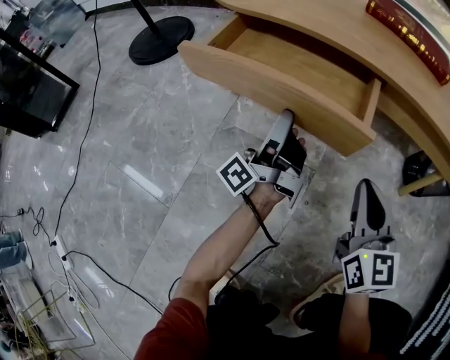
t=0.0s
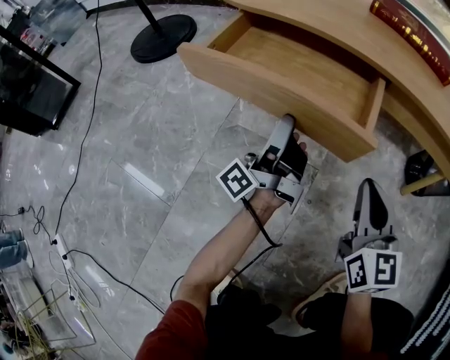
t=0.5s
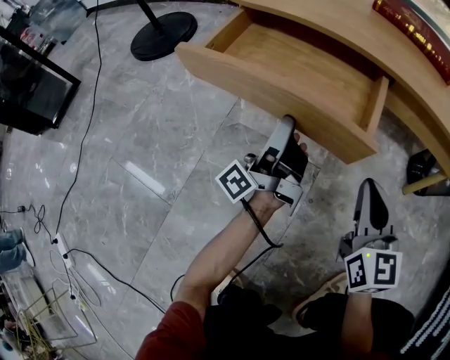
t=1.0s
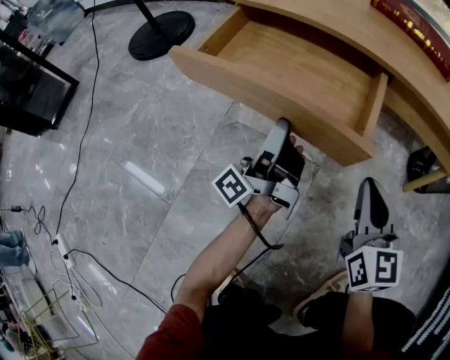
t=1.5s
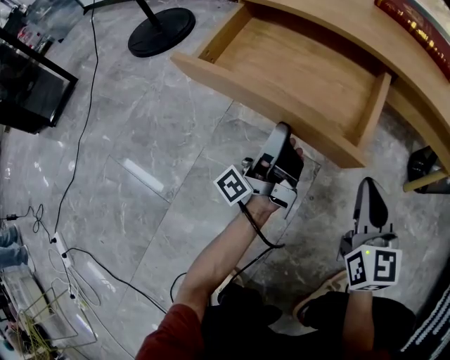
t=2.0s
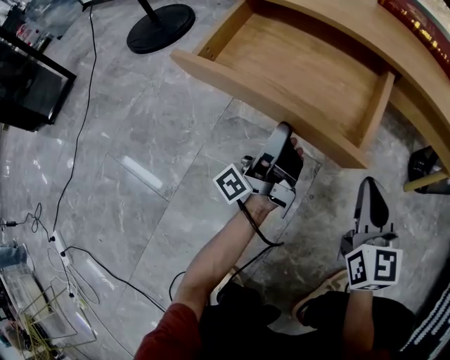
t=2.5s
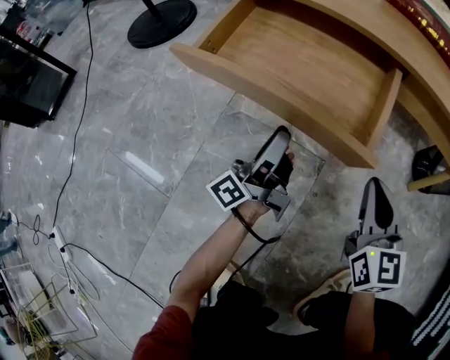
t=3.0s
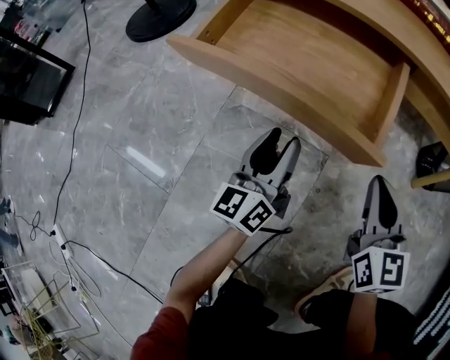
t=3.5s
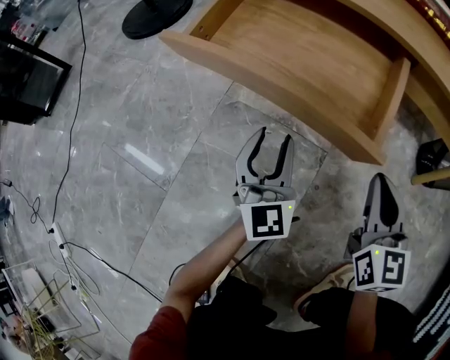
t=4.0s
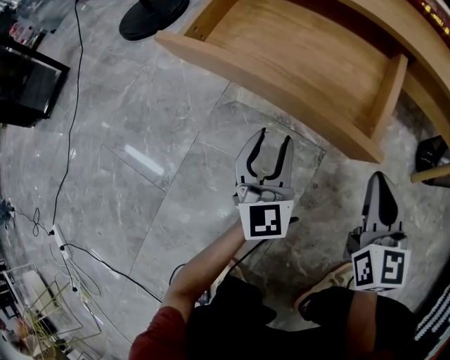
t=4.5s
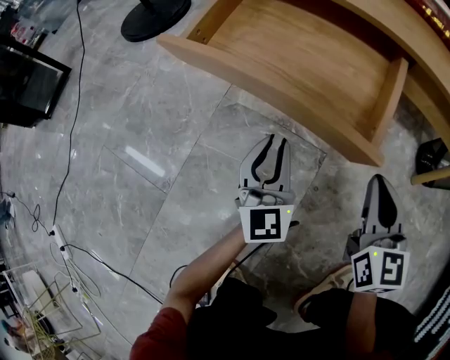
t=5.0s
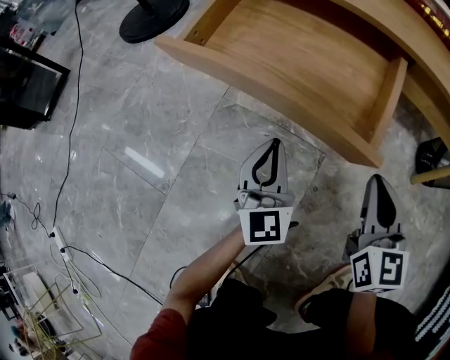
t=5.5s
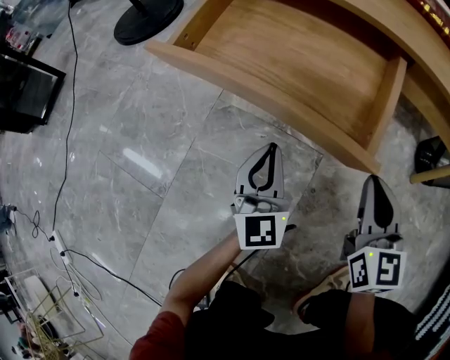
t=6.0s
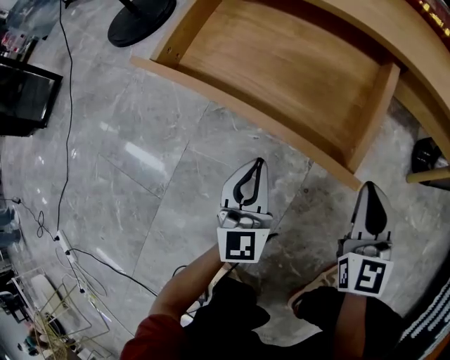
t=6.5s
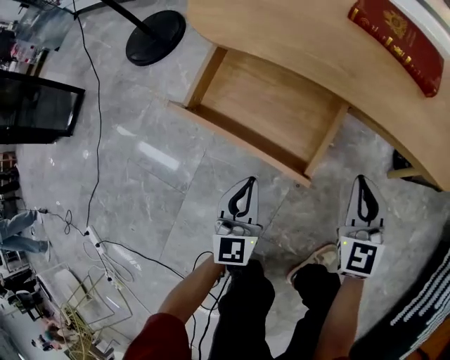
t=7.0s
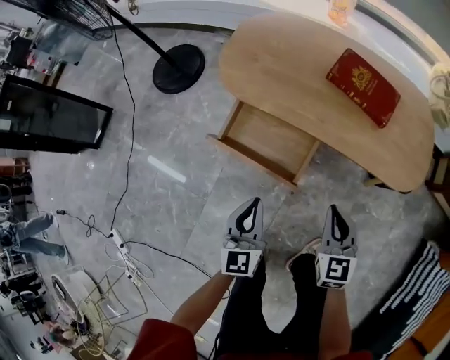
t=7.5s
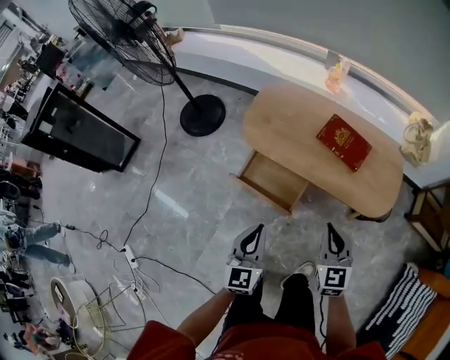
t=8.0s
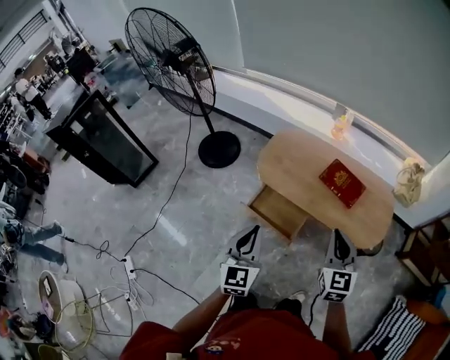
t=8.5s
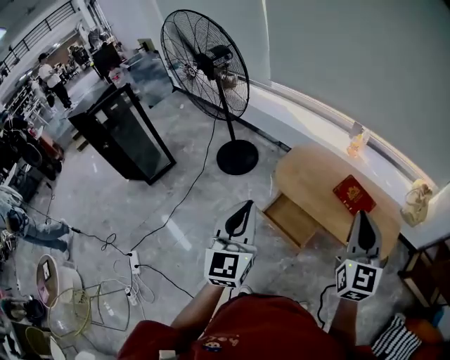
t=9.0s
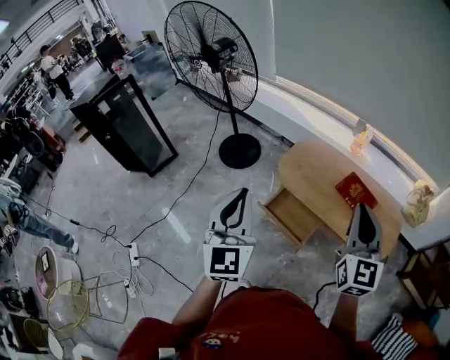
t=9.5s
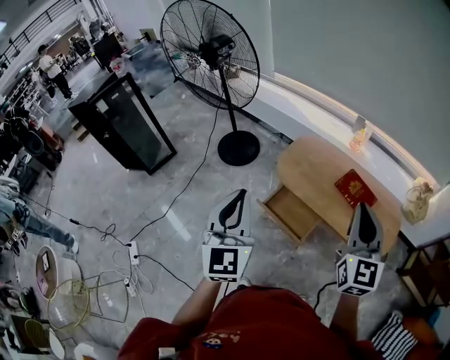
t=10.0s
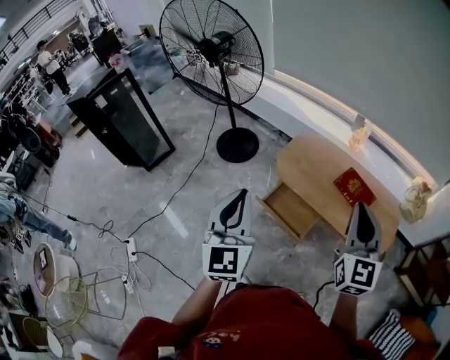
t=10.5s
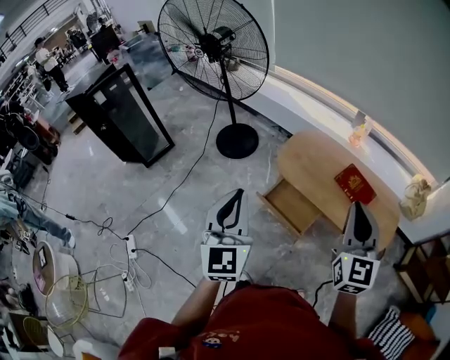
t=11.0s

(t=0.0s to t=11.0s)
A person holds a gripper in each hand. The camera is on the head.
t=0.0s - t=2.0s: The grippers make only small movements.
t=2.0s - t=3.5s: The left gripper changes place by roughly 5 cm, and rotates around the line of its fingers by approximately 60 degrees, clockwise from behind.
t=3.5s - t=5.5s: The left gripper rolls clockwise, seen from behind, by about 40 degrees, and closes up.
t=5.5s - t=7.5s: Both grippers travel together upward, about 35 cm.
t=7.5s - t=9.0s: The grippers both shift upward by roughly 50 cm. The left gripper changes its angle by about 20 degrees. The right gripper rotates roughly 30 degrees.
t=9.0s - t=11.0s: The left gripper ends up some 5 cm from where it was.

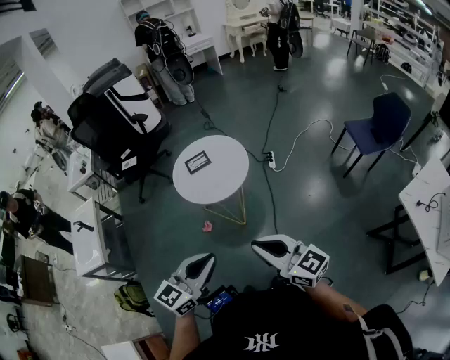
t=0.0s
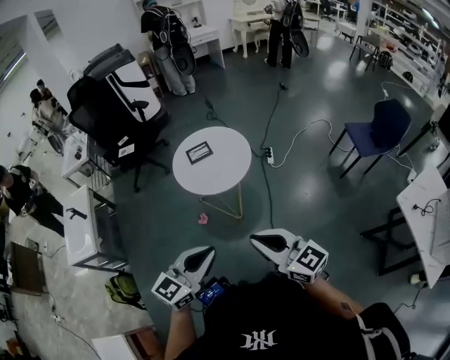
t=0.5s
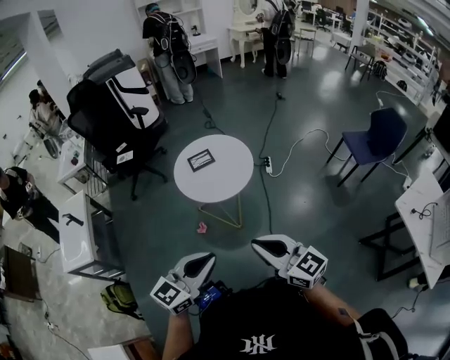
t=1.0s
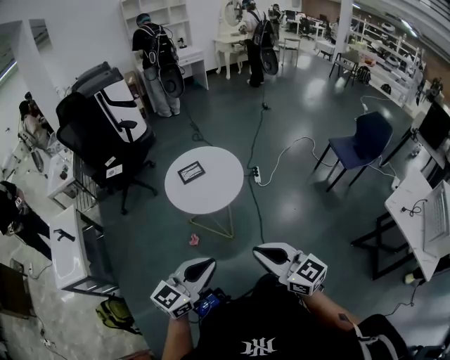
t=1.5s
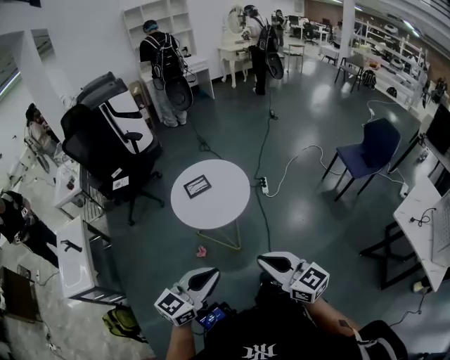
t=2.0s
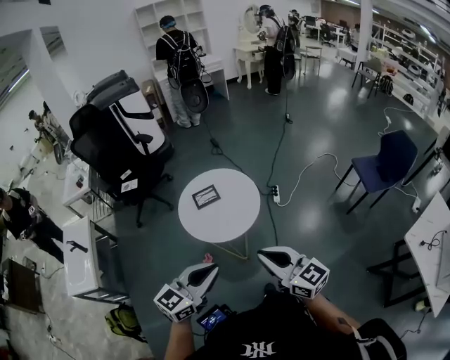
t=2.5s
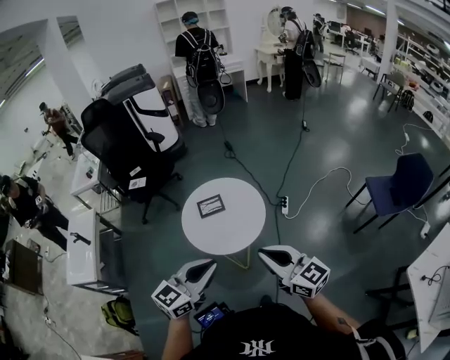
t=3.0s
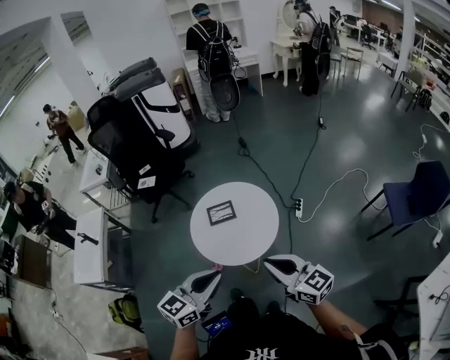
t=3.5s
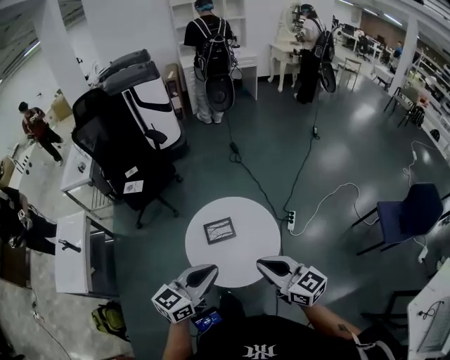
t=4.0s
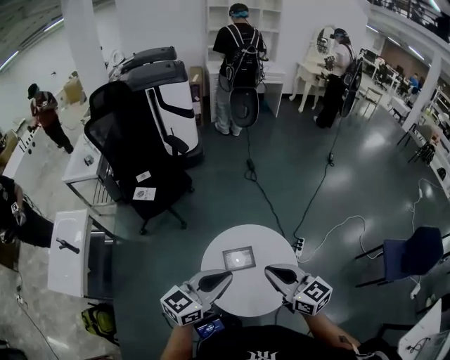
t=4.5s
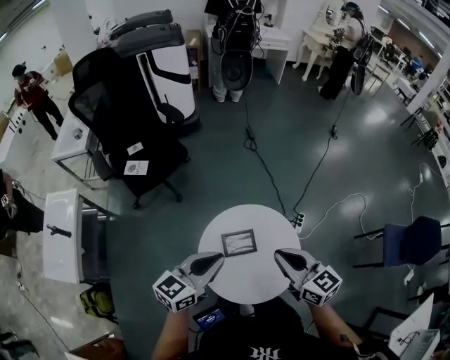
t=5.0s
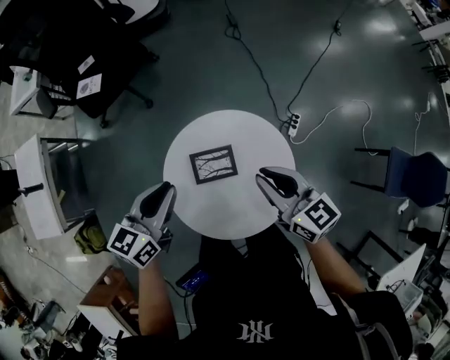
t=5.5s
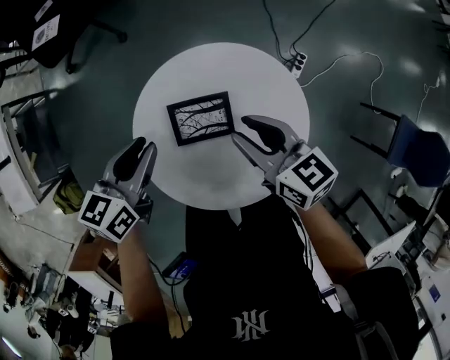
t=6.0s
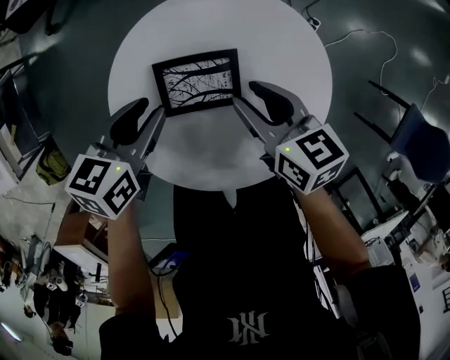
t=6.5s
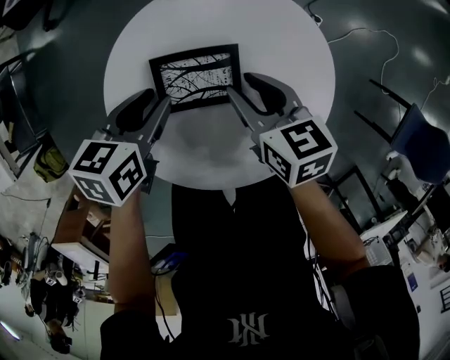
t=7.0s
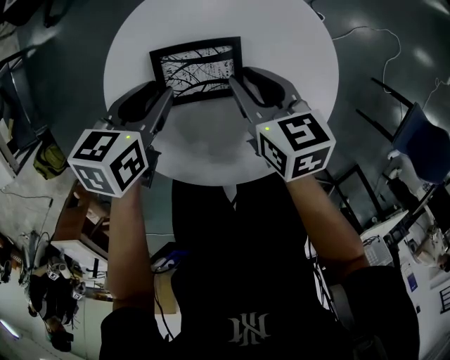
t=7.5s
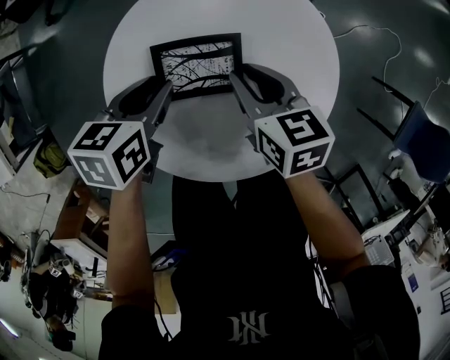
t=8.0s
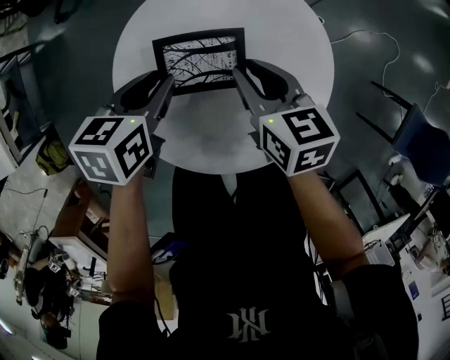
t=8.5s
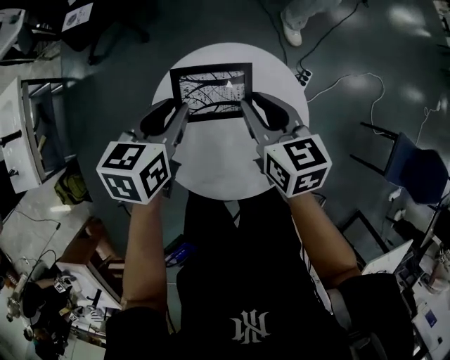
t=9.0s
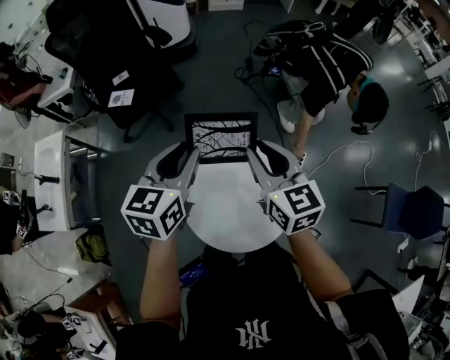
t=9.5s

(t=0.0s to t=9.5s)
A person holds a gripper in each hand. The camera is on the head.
t=0.0s - t=2.0s: The left gripper heads to the left and forward, covering approximately 10 cm, while the right gripper travels to the left by approximately 5 cm.
t=2.0s - t=4.0s: Both grippers move forward, roughly 40 cm.
t=4.0s - t=5.5s: The left gripper shifts roughly 35 cm forward, downward and to the left, and changes its angle by approximately 20 degrees; the right gripper is displaced forward and downward by some 30 cm.
t=5.5s - t=7.5s: The two grippers go some 30 cm downward. The left gripper swivels about 30 degrees, and opens. The right gripper swivels approximately 30 degrees.
t=7.5s - t=9.5s: Both grippers move upward, some 40 cm. The right gripper angles its fingers upward, by roughly 30 degrees, while the left gripper rotates approximately 40 degrees.

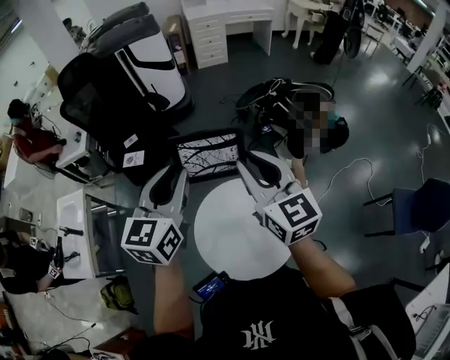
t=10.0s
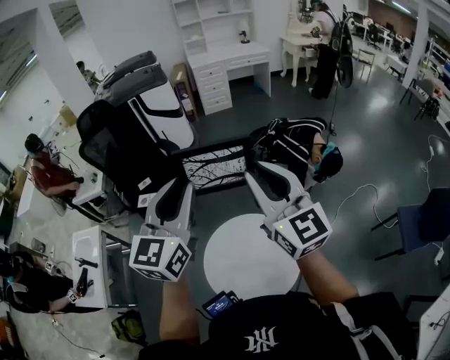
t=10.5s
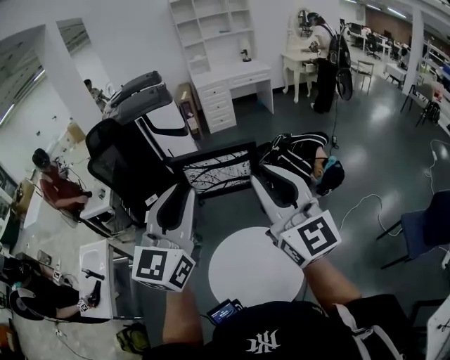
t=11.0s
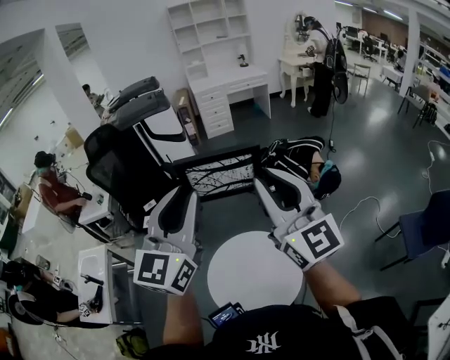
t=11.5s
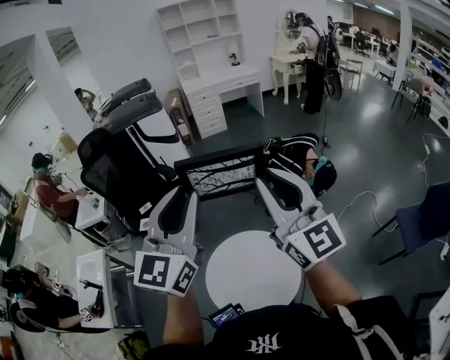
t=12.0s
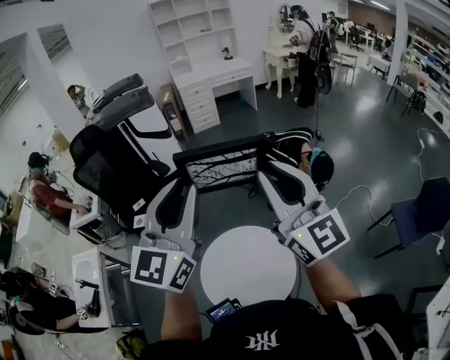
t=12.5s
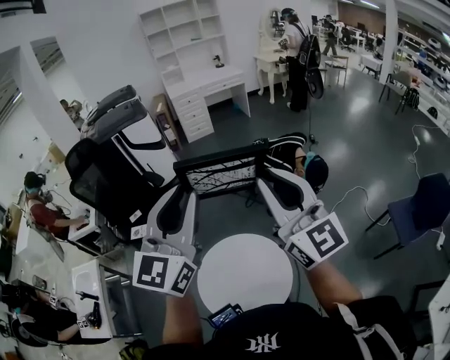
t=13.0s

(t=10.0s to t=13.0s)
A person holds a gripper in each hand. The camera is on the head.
t=10.0s - t=11.5s: Both grippers move upward, backward and to the right, some 20 cm. The left gripper rotates approximately 30 degrees, while the right gripper rotates some 20 degrees.
t=11.5s - t=13.0s: The two grippers go roughly 5 cm to the right.

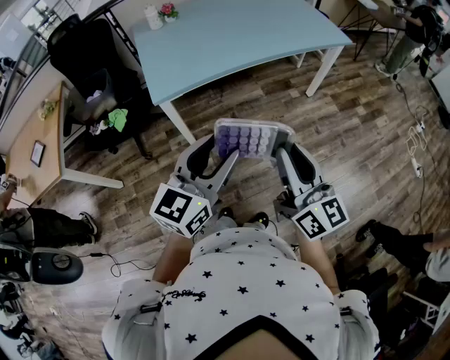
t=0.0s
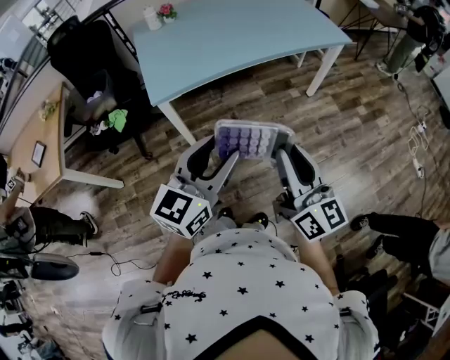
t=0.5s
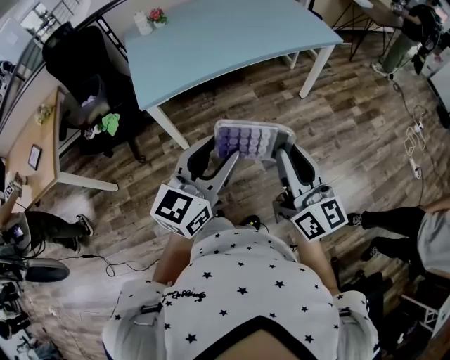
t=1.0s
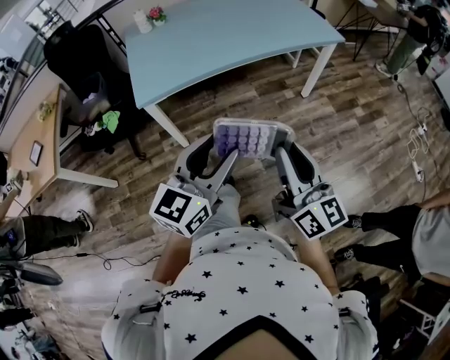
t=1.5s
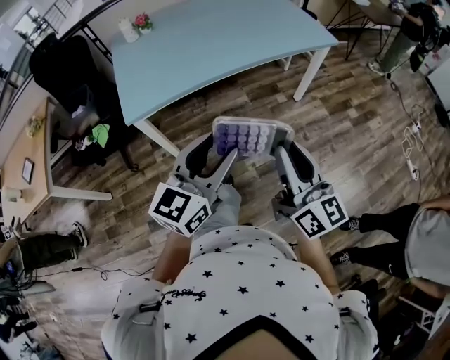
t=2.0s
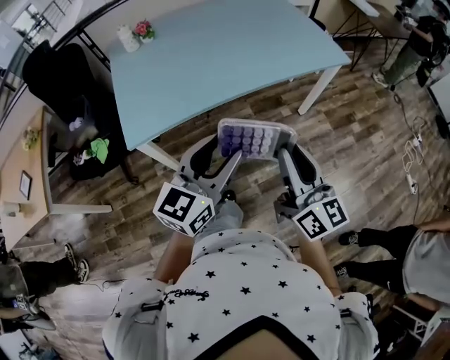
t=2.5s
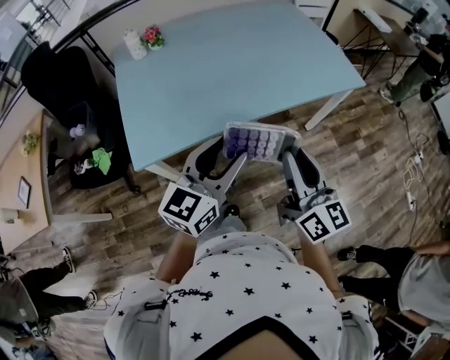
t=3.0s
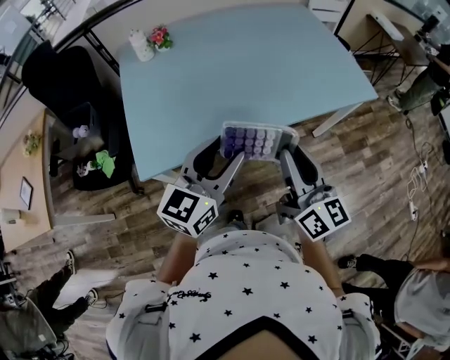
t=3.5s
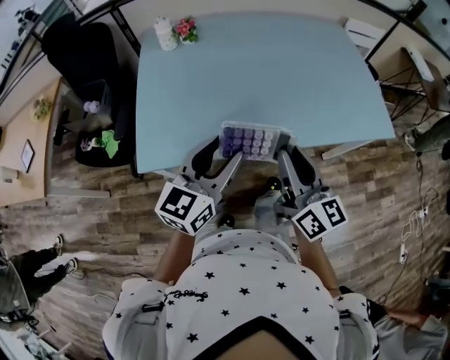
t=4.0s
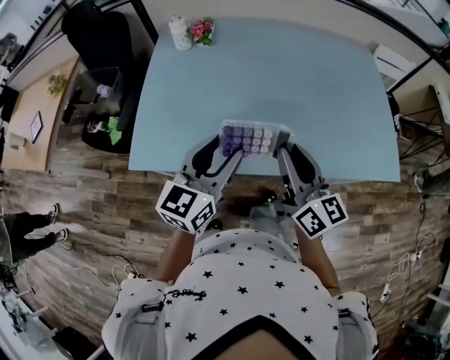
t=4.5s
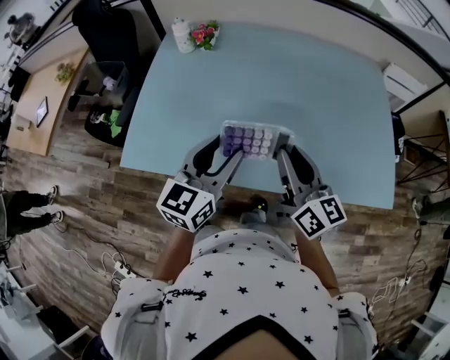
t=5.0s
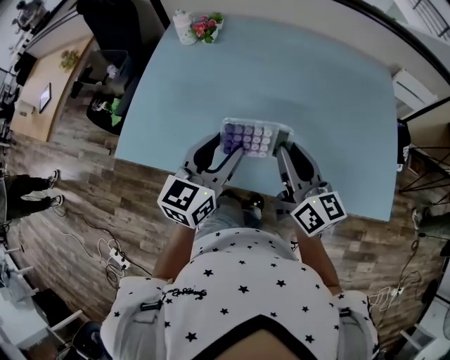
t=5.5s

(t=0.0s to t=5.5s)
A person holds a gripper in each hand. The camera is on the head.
t=0.0s - t=2.0s: Both grippers travel together to the right and forward, some 15 cm.
t=2.0s - t=3.5s: The two grippers go roughly 30 cm forward and to the left.
t=3.5s - t=5.5s: The right gripper shifts by approximately 25 cm, and swivels roughly 30 degrees. The left gripper ends up some 20 cm from where it was, and rotates roughly 30 degrees.
